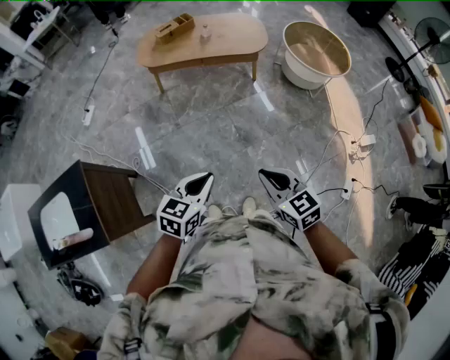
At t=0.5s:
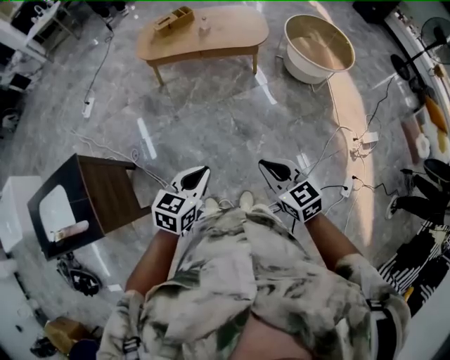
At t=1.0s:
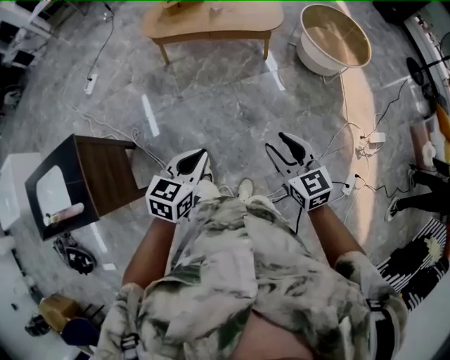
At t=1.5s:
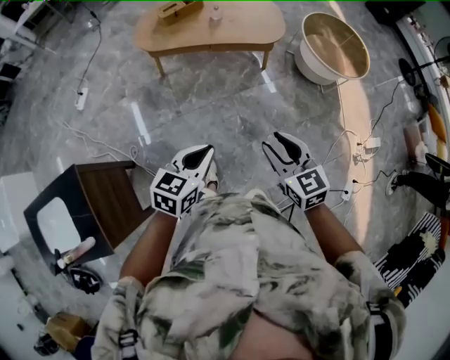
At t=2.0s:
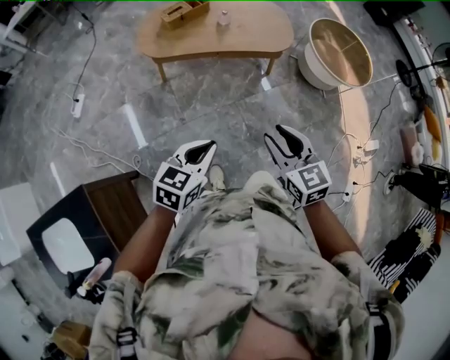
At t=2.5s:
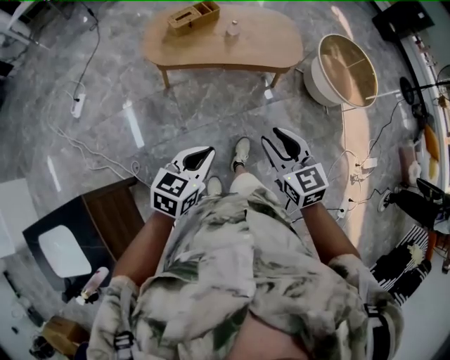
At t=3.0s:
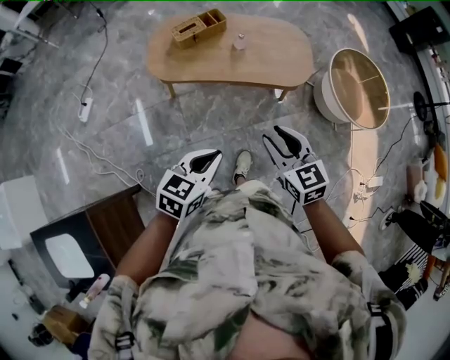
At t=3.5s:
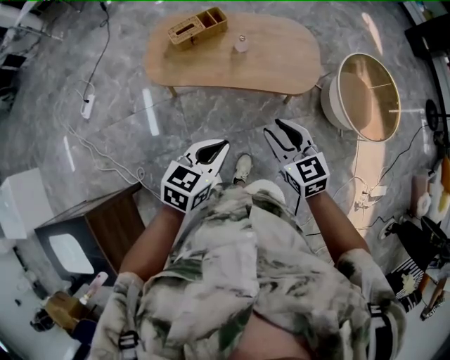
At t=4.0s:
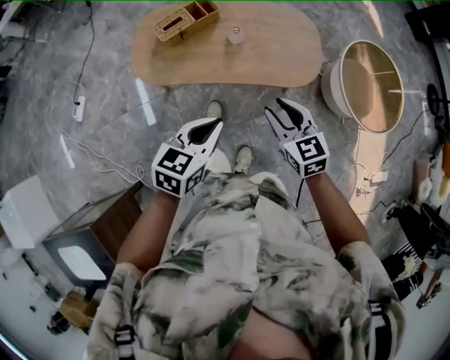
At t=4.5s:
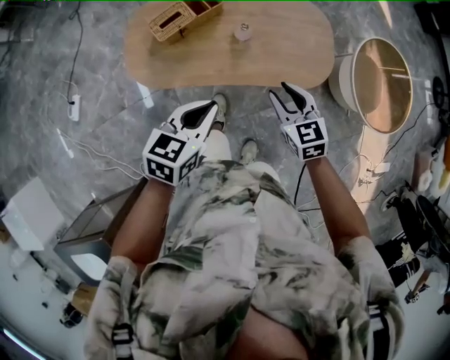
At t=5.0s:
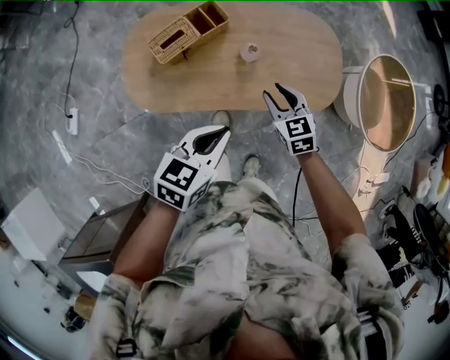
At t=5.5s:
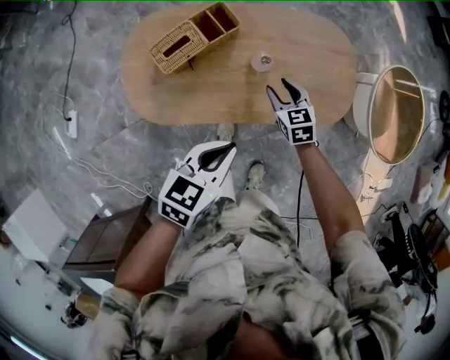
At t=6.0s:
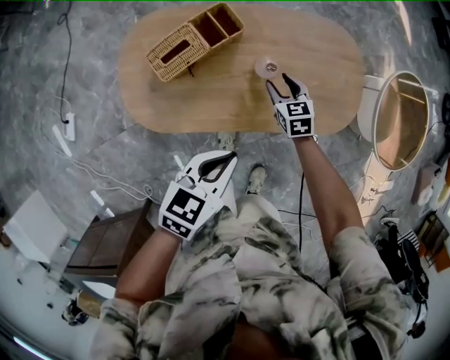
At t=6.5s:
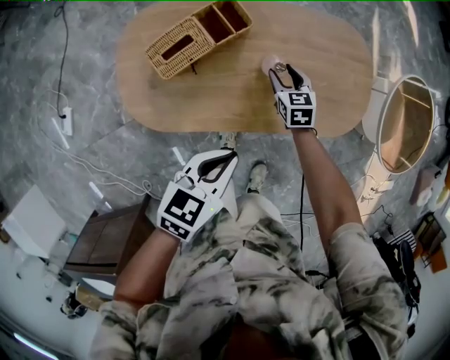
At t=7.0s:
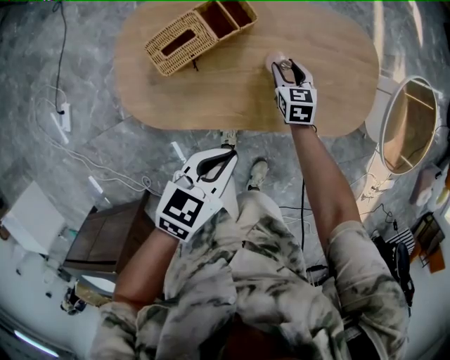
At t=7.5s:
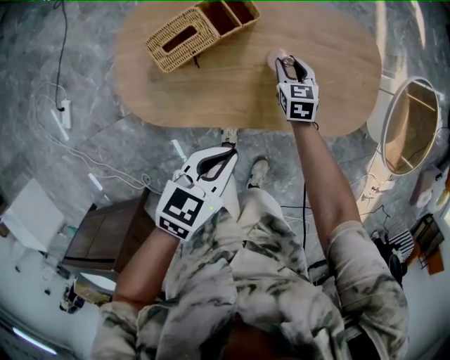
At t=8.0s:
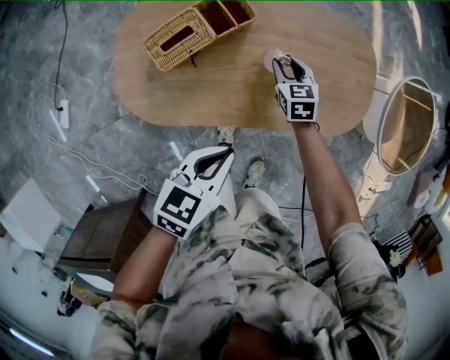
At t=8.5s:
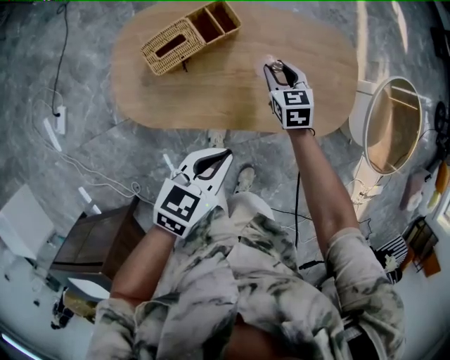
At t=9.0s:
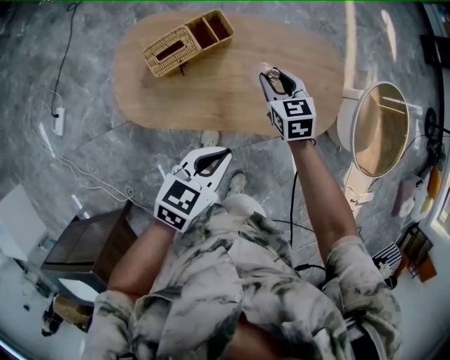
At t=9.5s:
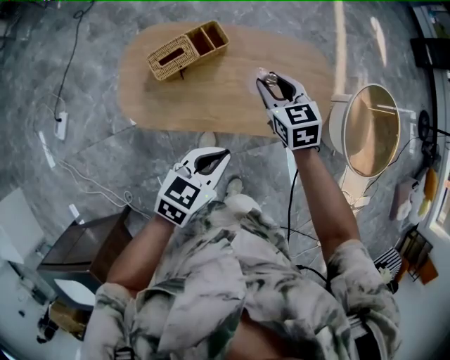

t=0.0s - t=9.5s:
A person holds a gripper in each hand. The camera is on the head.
t=0.0s - t=2.0s: The grippers both shift forward and to the left by about 35 cm. The right gripper opens up.
t=2.0s - t=4.0s: The two grippers travel together, forward, about 40 cm.
t=4.0s - t=5.5s: The right gripper is displaced forward, downward and to the left by some 40 cm. Meanwhile the left gripper heads forward, downward and to the left, covering about 25 cm.
t=5.5s - t=7.5s: The right gripper moves downward and forward, some 15 cm. The left gripper heads downward, covering approximately 10 cm.
t=7.5s - t=9.5s: The right gripper moves upward, approximately 30 cm; the left gripper heads upward and to the right, covering some 15 cm.

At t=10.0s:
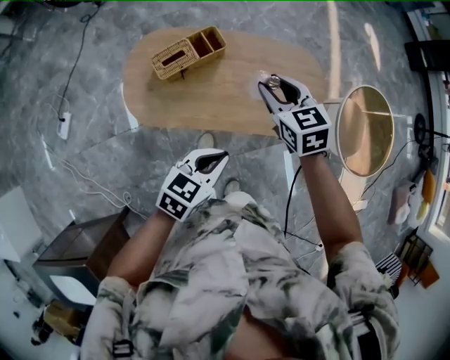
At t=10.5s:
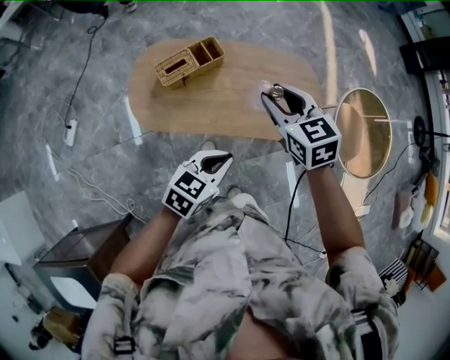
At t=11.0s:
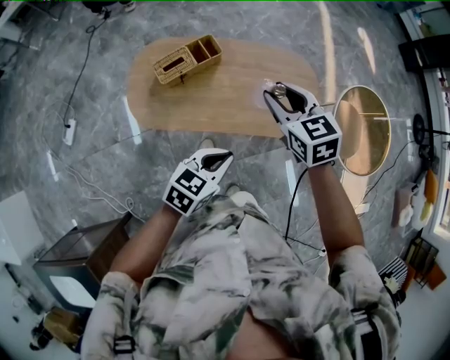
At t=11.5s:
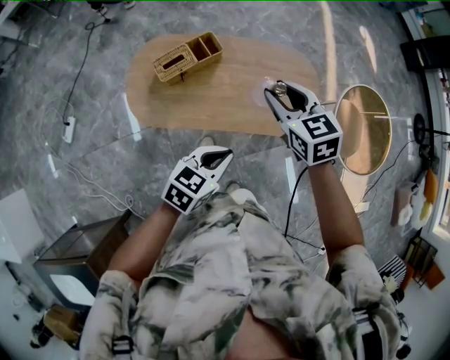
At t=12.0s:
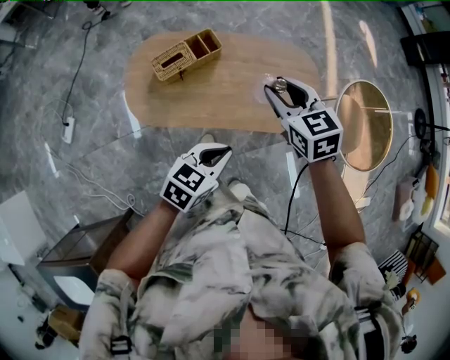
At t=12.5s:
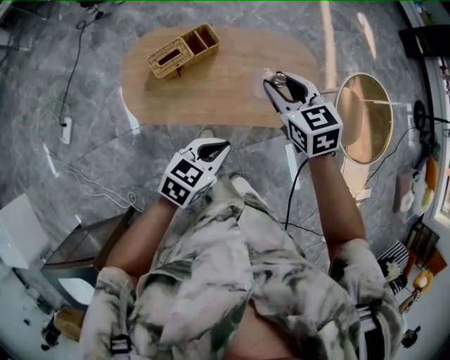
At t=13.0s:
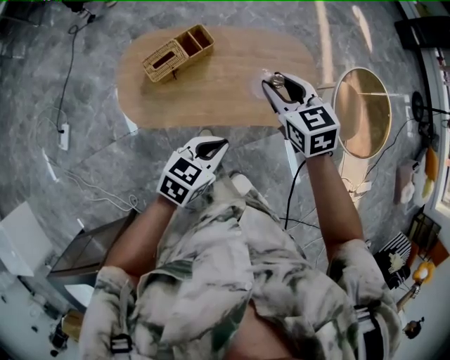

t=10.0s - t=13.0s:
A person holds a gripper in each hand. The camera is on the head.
t=10.0s - t=11.5s: The right gripper goes about 5 cm upward.
t=11.5s - t=13.0s: The grippers move only a little.

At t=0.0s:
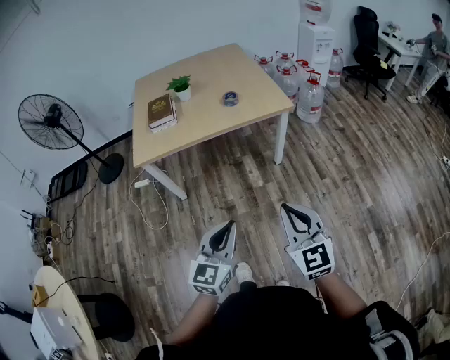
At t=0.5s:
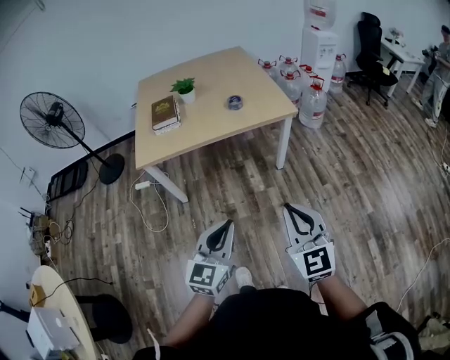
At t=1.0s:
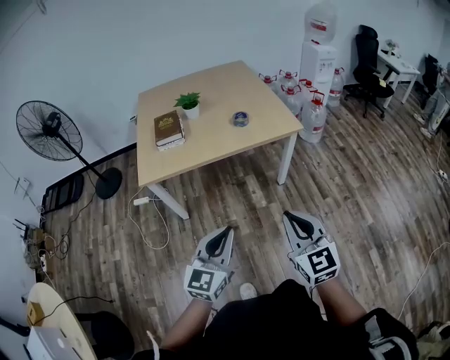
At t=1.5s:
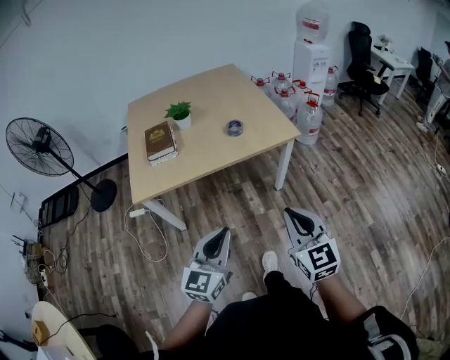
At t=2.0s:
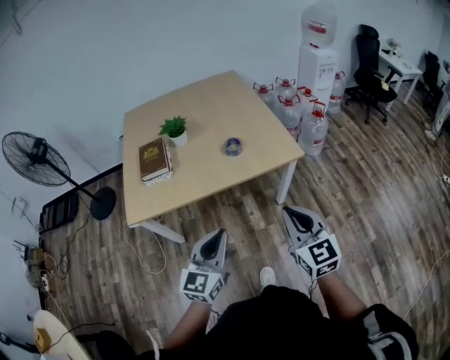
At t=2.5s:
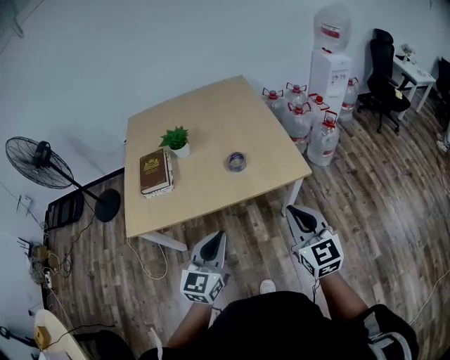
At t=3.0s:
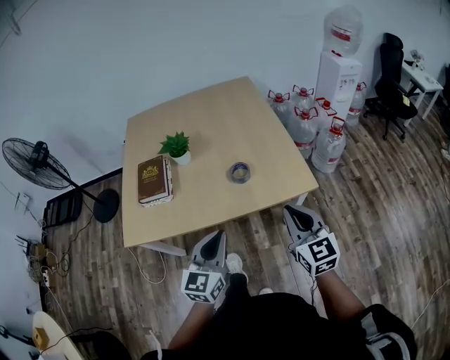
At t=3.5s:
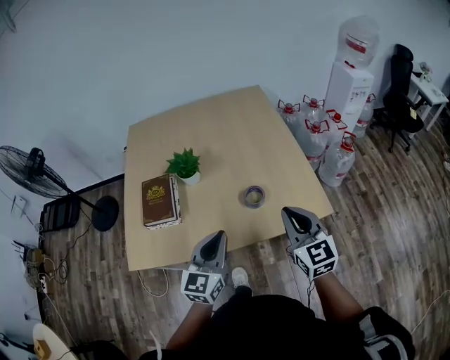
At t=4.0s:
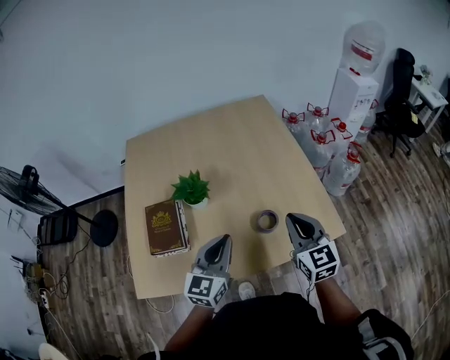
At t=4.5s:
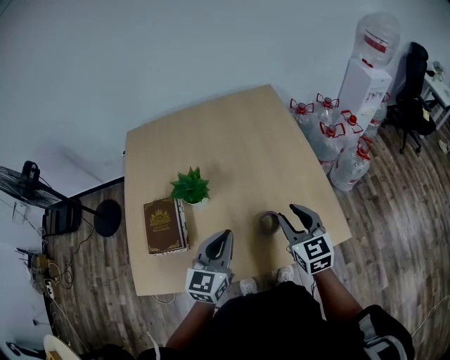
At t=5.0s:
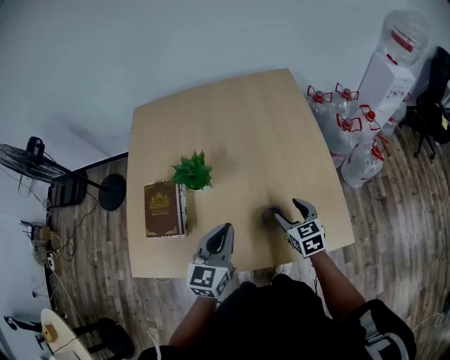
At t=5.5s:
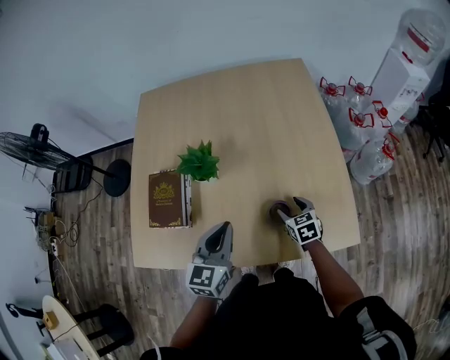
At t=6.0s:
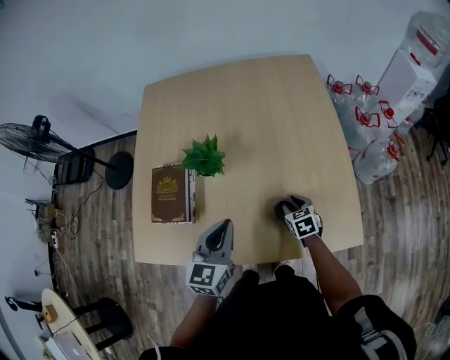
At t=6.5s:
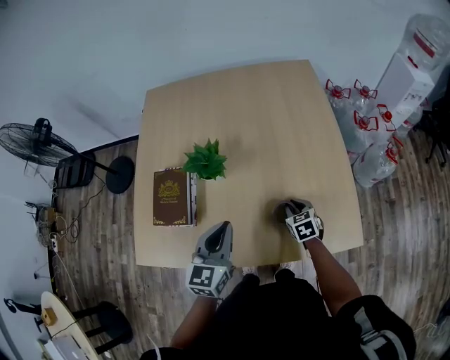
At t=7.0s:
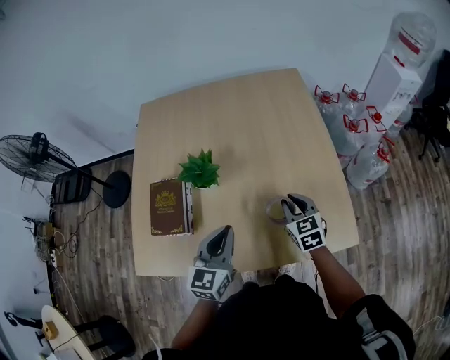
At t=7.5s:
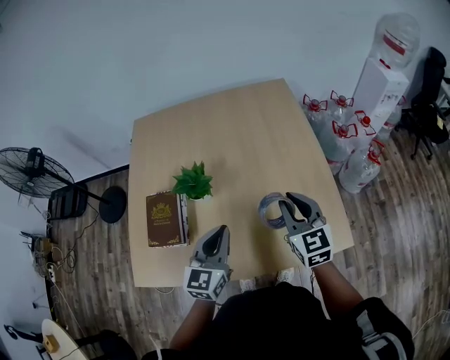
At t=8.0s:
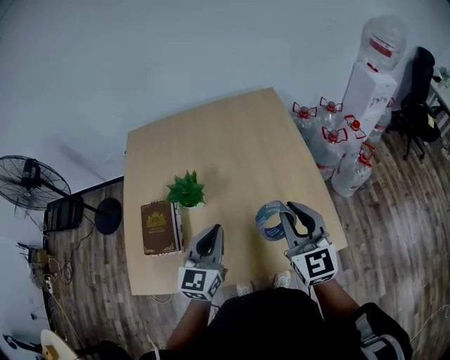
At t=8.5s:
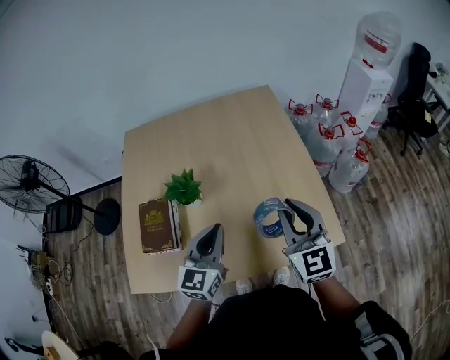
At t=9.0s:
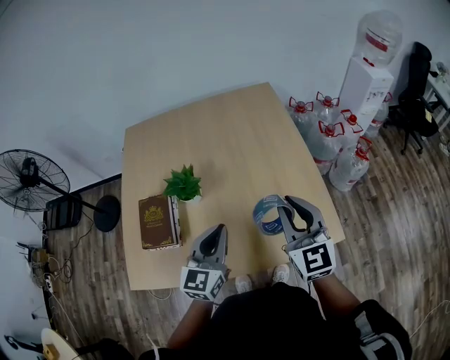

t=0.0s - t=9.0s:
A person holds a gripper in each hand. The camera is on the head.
t=0.0s - t=2.0s: Both grippers travel together forward, about 30 cm.
t=2.0s - t=4.5s: The two grippers travel together, forward, about 50 cm. The right gripper opens its fingers.
t=4.5s - t=7.0s: The right gripper goes about 15 cm downward and forward, and opens, then closes again.
t=7.0s - t=9.0s: The right gripper heads upward, covering about 20 cm, and swivels some 30 degrees, while the left gripper travels upward by roughly 5 cm.

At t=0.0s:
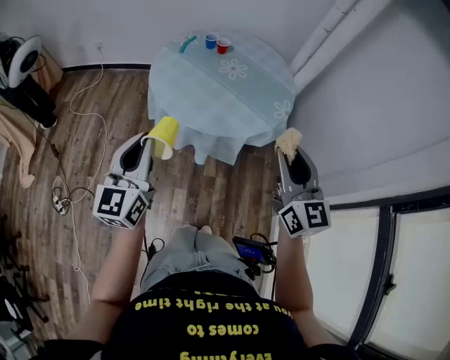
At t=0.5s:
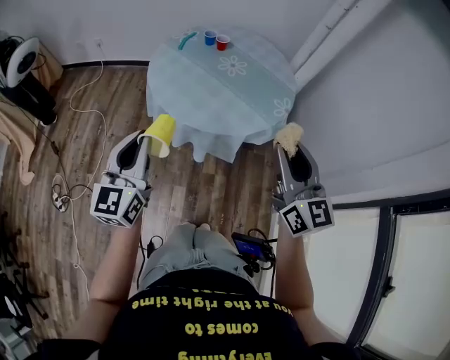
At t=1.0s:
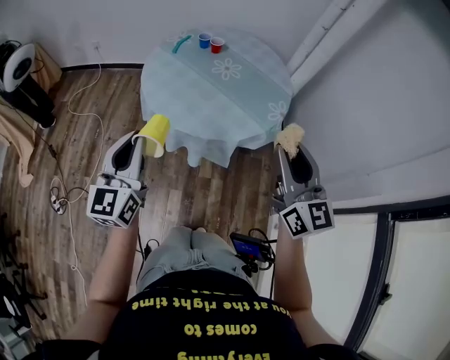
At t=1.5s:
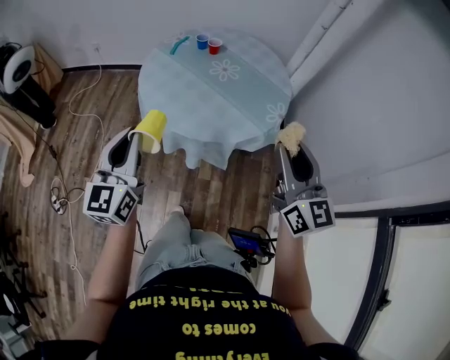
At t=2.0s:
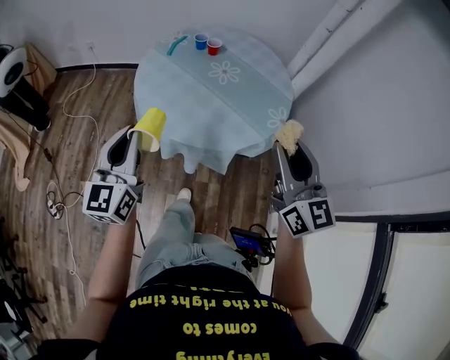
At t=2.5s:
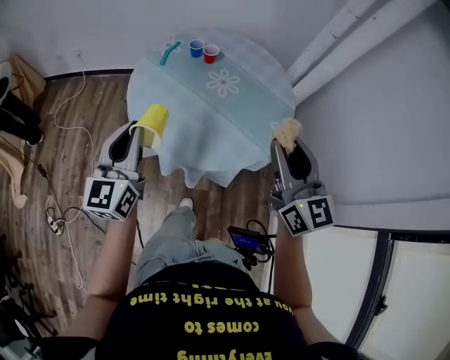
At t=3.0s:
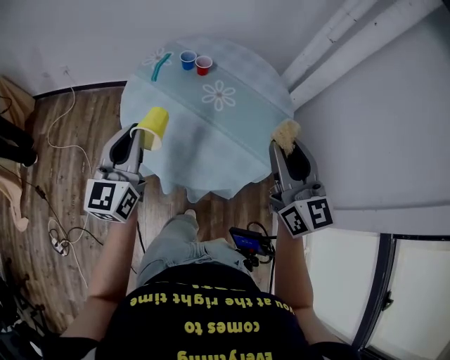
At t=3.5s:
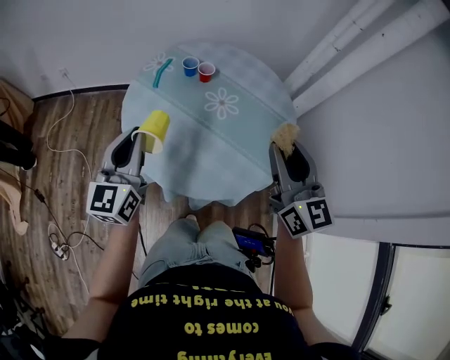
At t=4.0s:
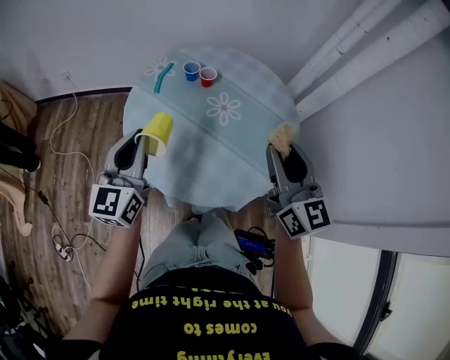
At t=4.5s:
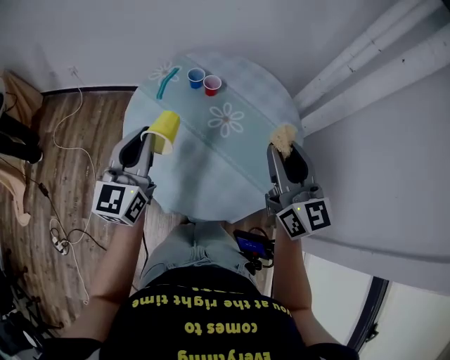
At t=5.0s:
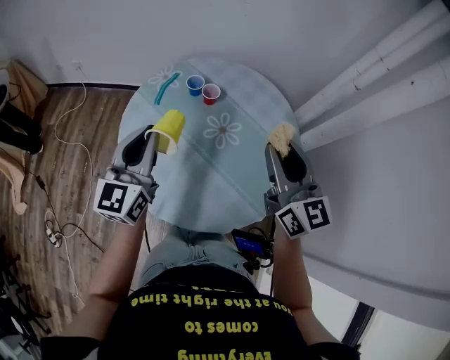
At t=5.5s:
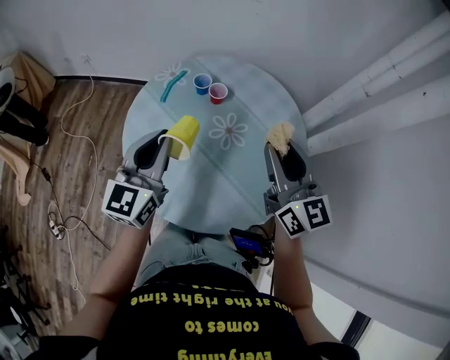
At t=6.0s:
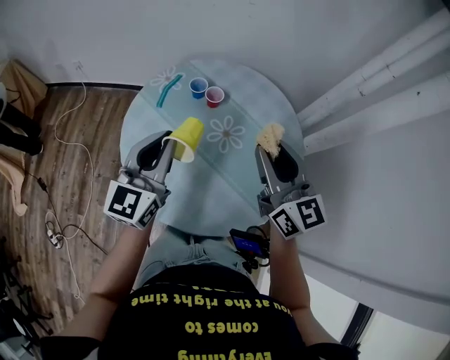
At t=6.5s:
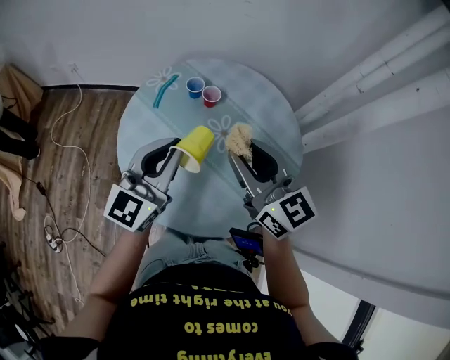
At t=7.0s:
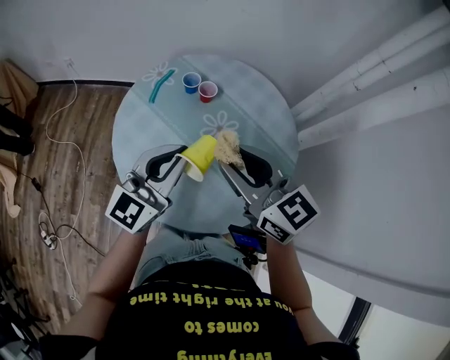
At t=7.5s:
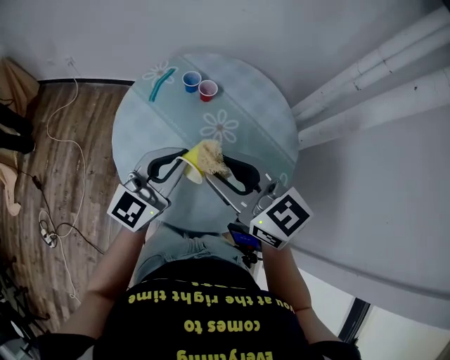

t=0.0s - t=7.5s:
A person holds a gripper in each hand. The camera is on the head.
t=0.0s - t=2.0s: Both grippers move forward, some 10 cm.
t=2.0s - t=4.0s: Both grippers move forward, some 25 cm.
t=4.0s - t=5.5s: The left gripper heads to the right and forward, covering roughly 10 cm; the right gripper travels forward by about 15 cm.
t=5.5s - t=7.5s: The left gripper is displaced to the right by roughly 5 cm, and turns by roughly 20 degrees. Meanwhile the right gripper is displaced to the left and backward by about 15 cm, and swivels about 30 degrees.
